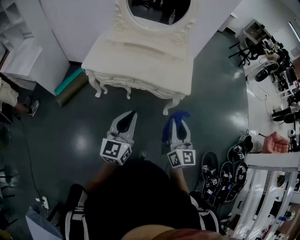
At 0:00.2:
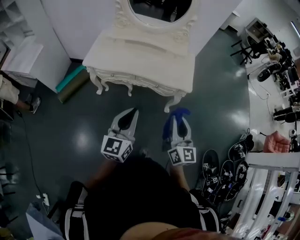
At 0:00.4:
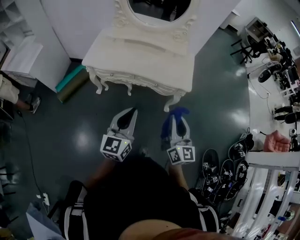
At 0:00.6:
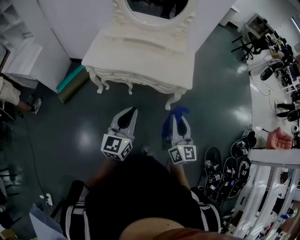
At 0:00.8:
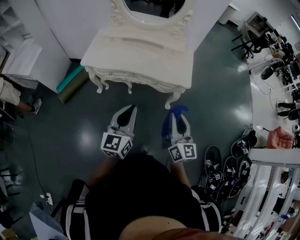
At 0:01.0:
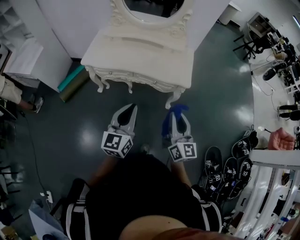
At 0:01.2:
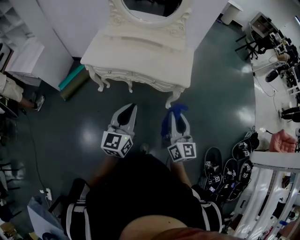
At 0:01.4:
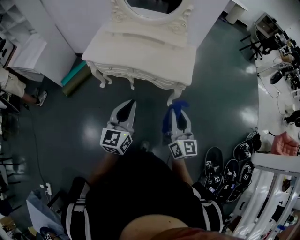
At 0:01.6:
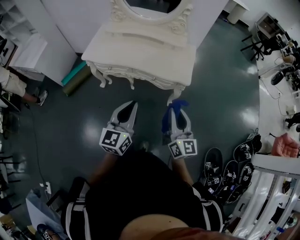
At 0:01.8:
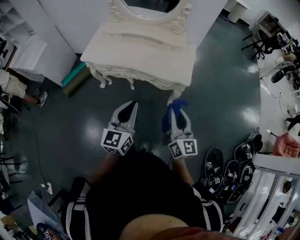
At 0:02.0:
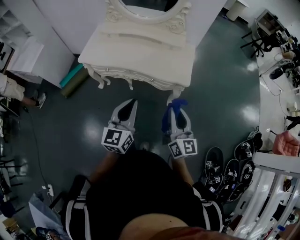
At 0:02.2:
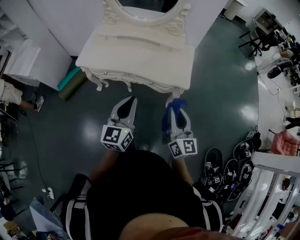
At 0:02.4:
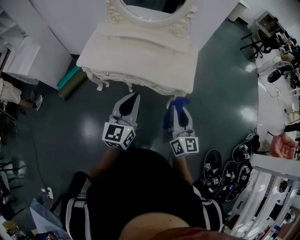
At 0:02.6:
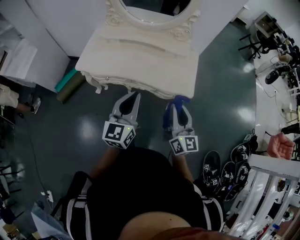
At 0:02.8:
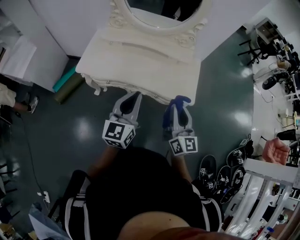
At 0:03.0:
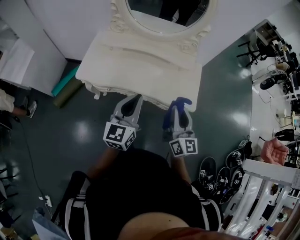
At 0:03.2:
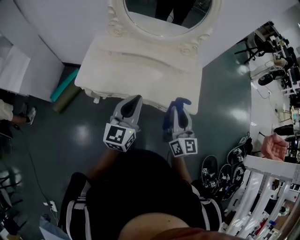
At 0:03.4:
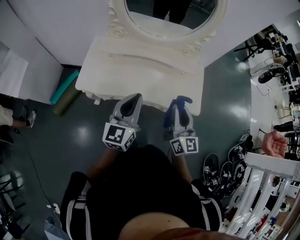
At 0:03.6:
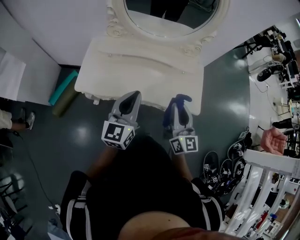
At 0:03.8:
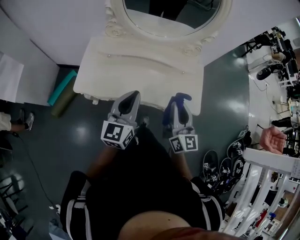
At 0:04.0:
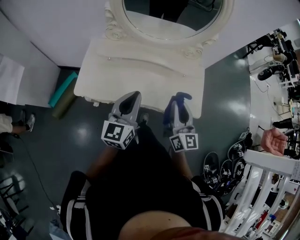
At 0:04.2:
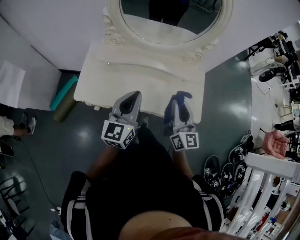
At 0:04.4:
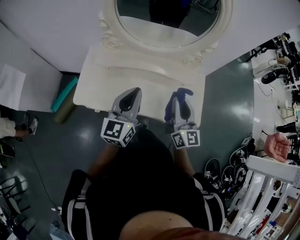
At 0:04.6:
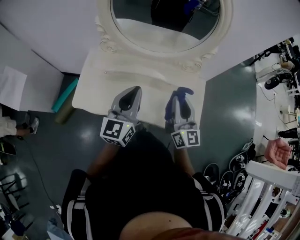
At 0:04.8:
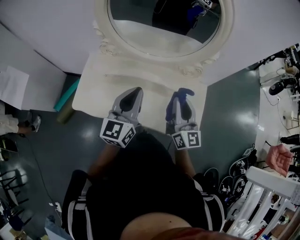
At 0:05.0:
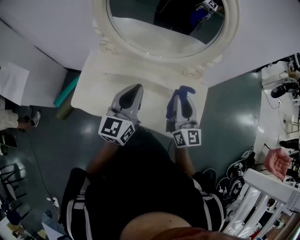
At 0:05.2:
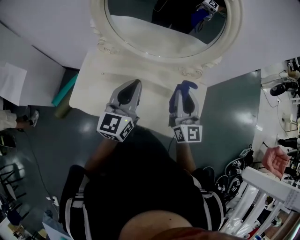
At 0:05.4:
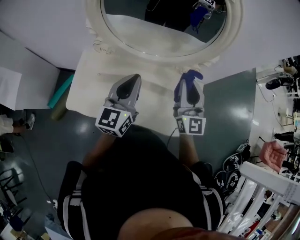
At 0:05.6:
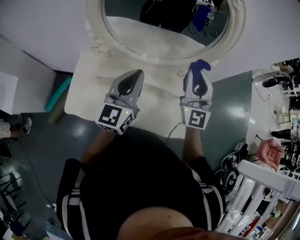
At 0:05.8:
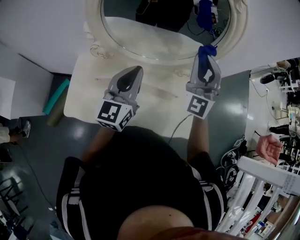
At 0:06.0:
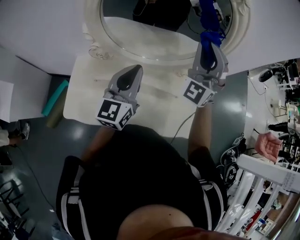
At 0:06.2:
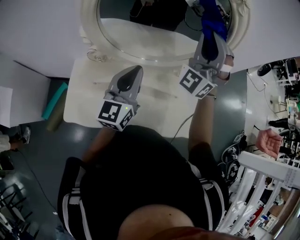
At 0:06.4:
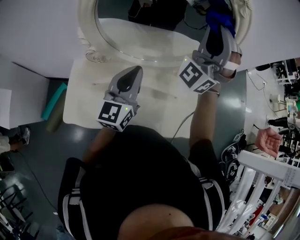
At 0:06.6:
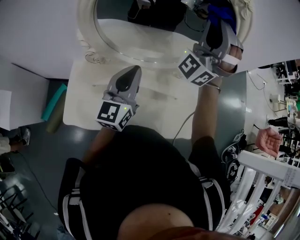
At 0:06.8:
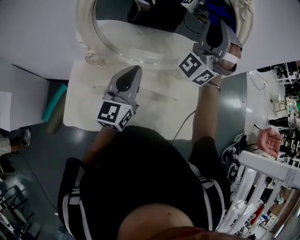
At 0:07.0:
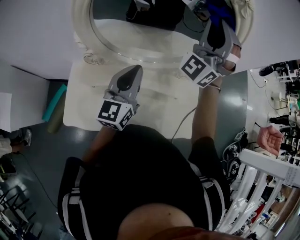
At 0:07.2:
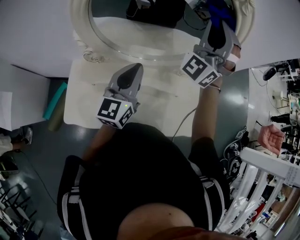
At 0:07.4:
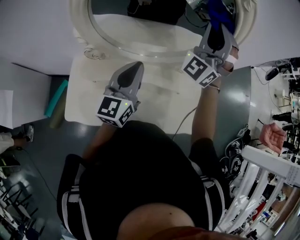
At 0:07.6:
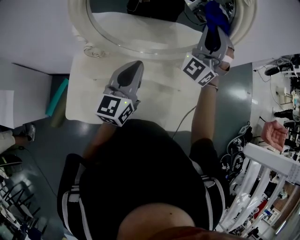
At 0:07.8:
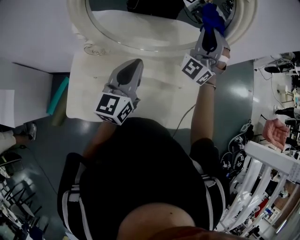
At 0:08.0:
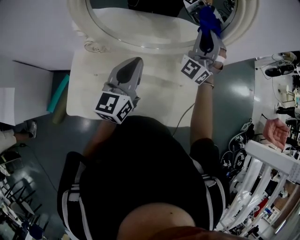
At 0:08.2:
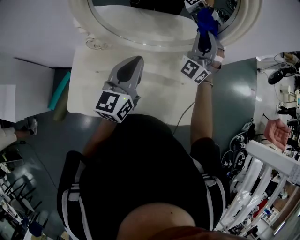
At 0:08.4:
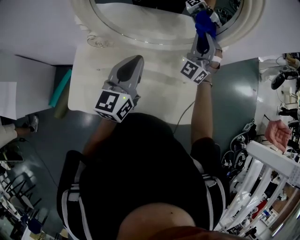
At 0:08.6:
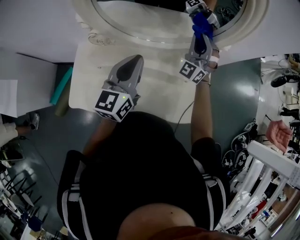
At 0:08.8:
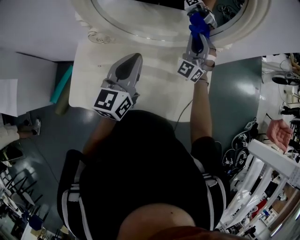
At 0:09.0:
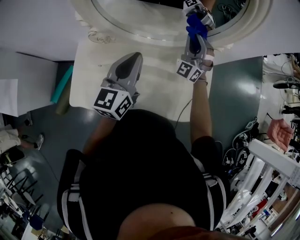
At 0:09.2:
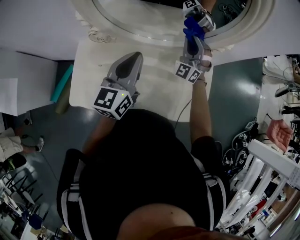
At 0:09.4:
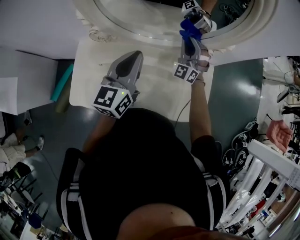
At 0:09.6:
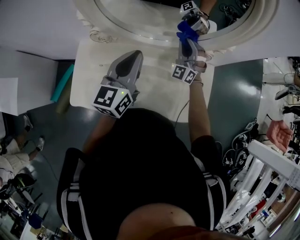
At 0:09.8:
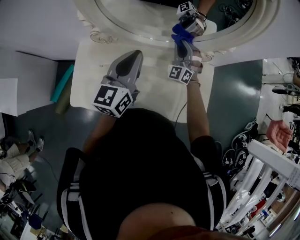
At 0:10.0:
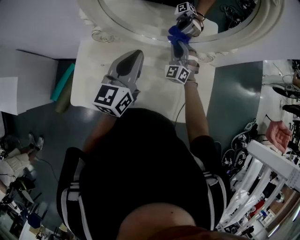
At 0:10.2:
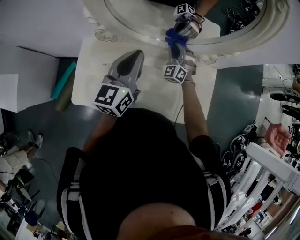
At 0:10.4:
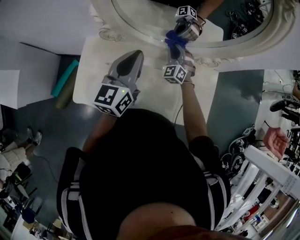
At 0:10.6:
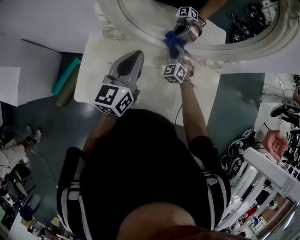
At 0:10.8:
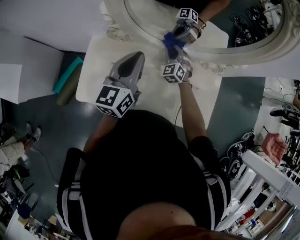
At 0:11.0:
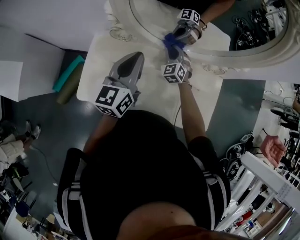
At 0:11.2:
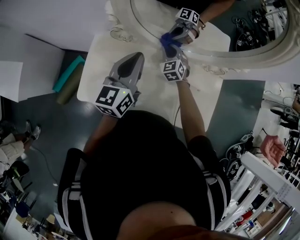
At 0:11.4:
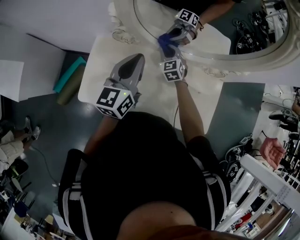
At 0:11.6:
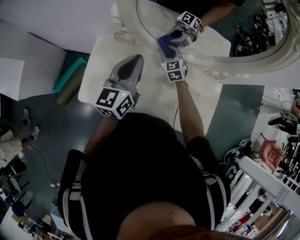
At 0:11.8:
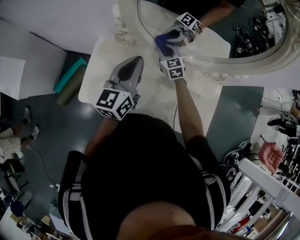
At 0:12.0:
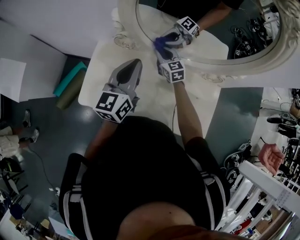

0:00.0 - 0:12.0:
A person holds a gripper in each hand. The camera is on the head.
0:00.0 - 0:01.6: Both grippers move to the right, some 10 cm.
0:01.6 - 0:03.0: Both grippers move forward and to the left, some 25 cm.
0:03.0 - 0:04.4: The grippers both shift forward by about 20 cm.
0:04.4 - 0:06.0: The right gripper heads forward and upward, covering some 30 cm, and rolls counterclockwise, seen from behind, by some 70 degrees, while the left gripper travels forward by roughly 20 cm.
0:06.0 - 0:07.6: The right gripper heads forward, covering approximately 5 cm, and reaches some 10 cm upward, then returns.
0:07.6 - 0:09.0: The right gripper is displaced downward by approximately 20 cm.
0:09.0 - 0:10.4: The right gripper heads downward and to the left, covering approximately 20 cm, and changes its angle by about 30 degrees; the left gripper travels to the left by some 5 cm.
0:10.4 - 0:12.0: The left gripper travels to the left by some 5 cm; the right gripper shifts roughly 15 cm to the left, and swivels roughly 50 degrees.

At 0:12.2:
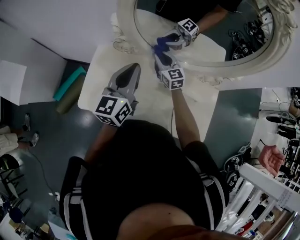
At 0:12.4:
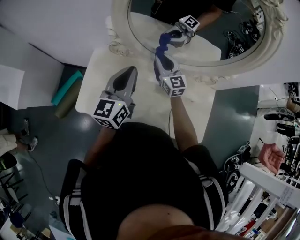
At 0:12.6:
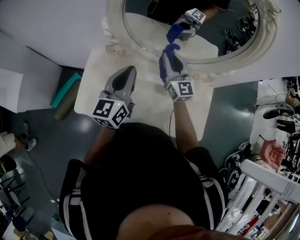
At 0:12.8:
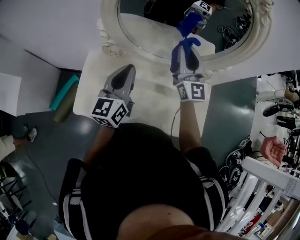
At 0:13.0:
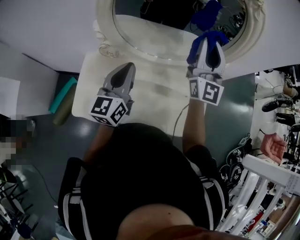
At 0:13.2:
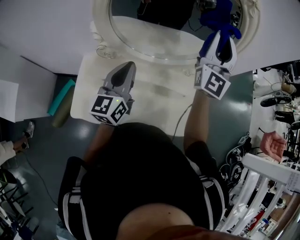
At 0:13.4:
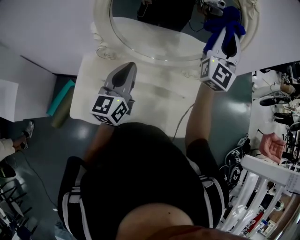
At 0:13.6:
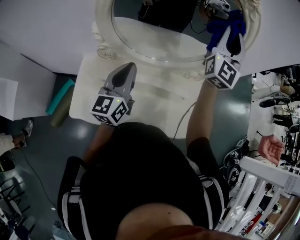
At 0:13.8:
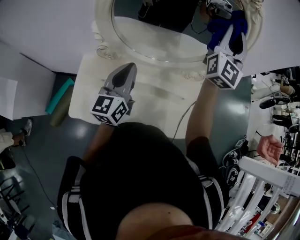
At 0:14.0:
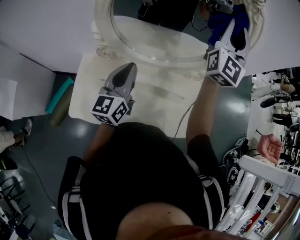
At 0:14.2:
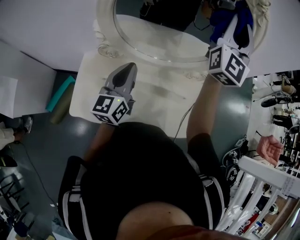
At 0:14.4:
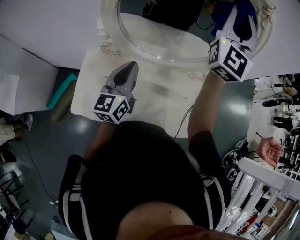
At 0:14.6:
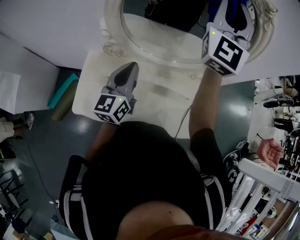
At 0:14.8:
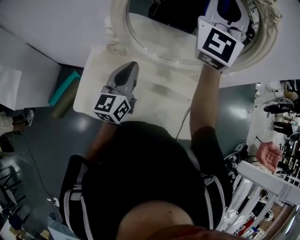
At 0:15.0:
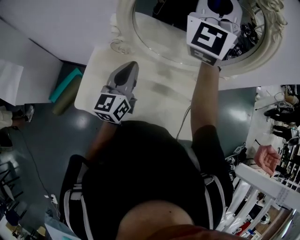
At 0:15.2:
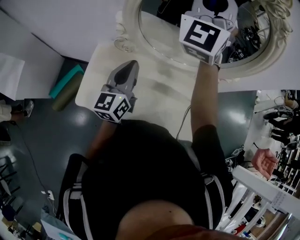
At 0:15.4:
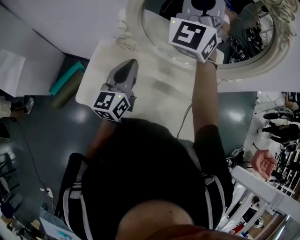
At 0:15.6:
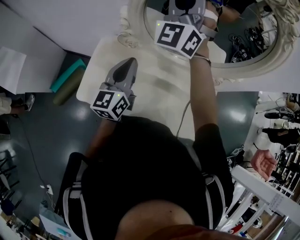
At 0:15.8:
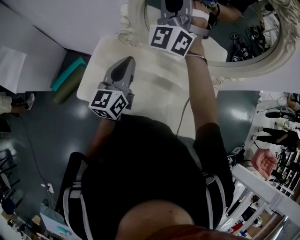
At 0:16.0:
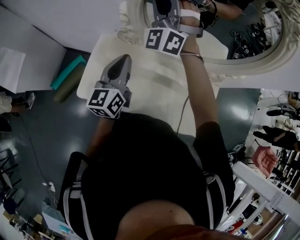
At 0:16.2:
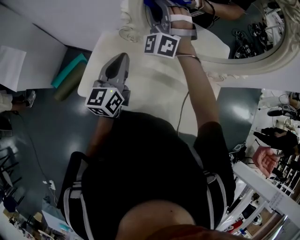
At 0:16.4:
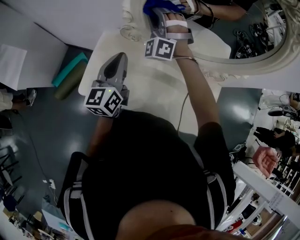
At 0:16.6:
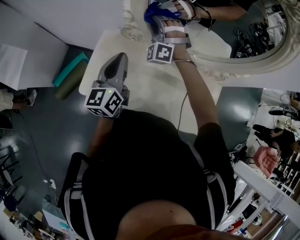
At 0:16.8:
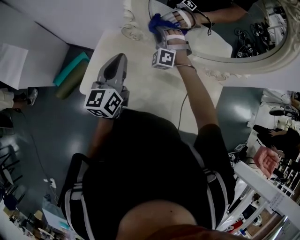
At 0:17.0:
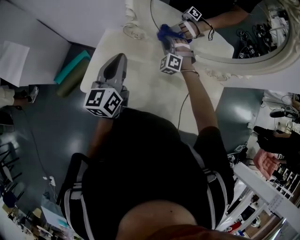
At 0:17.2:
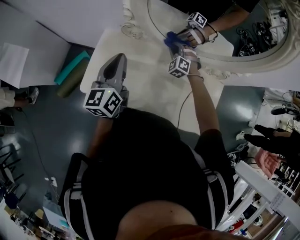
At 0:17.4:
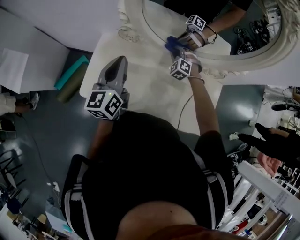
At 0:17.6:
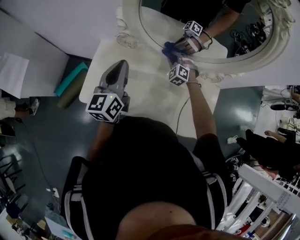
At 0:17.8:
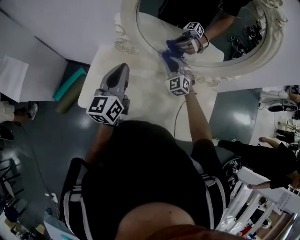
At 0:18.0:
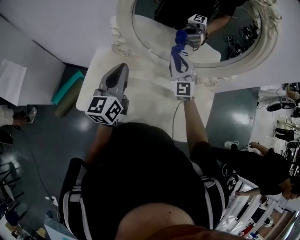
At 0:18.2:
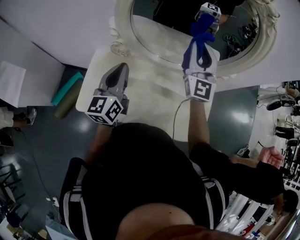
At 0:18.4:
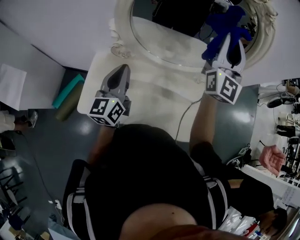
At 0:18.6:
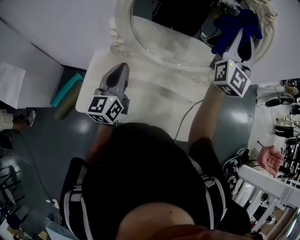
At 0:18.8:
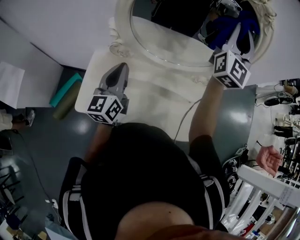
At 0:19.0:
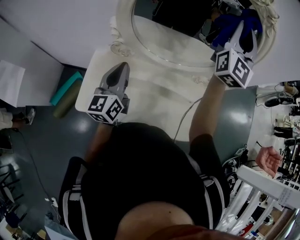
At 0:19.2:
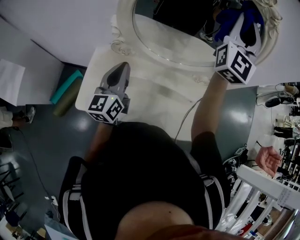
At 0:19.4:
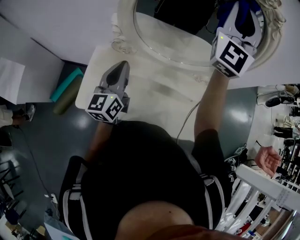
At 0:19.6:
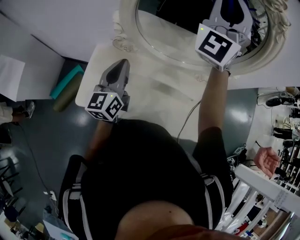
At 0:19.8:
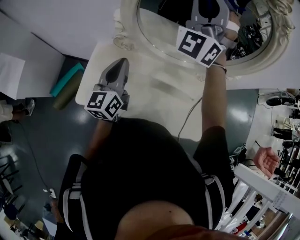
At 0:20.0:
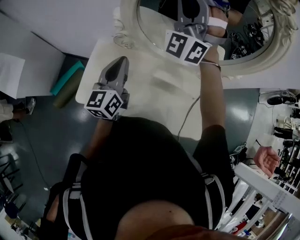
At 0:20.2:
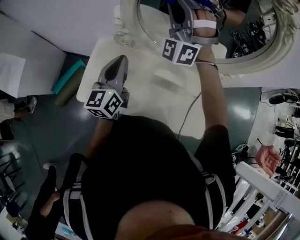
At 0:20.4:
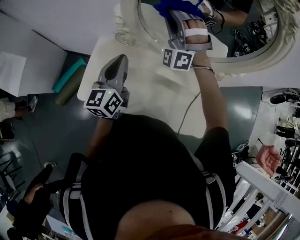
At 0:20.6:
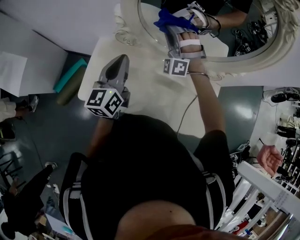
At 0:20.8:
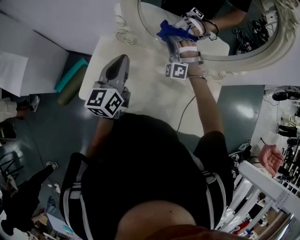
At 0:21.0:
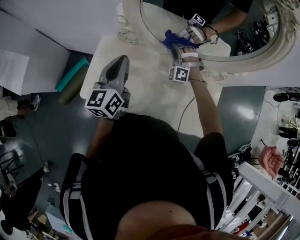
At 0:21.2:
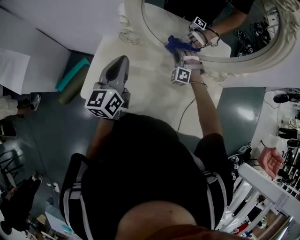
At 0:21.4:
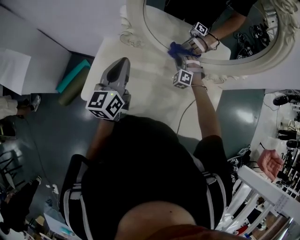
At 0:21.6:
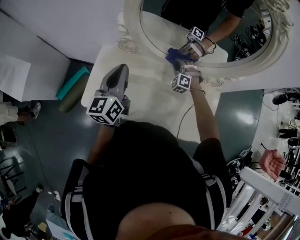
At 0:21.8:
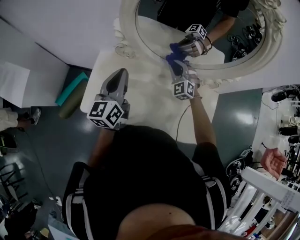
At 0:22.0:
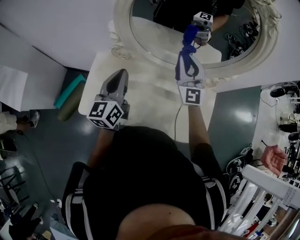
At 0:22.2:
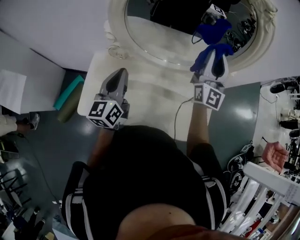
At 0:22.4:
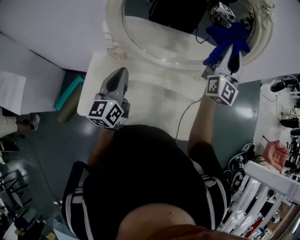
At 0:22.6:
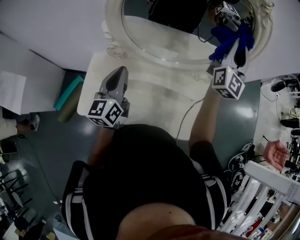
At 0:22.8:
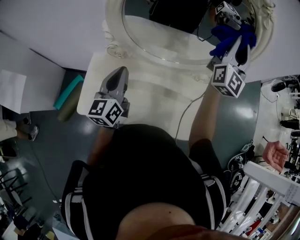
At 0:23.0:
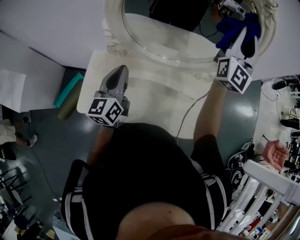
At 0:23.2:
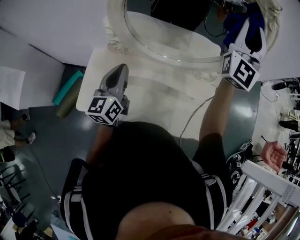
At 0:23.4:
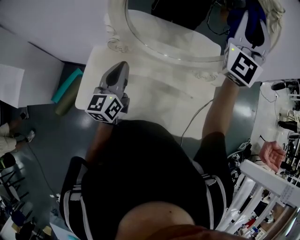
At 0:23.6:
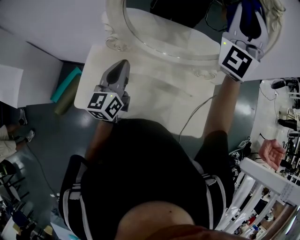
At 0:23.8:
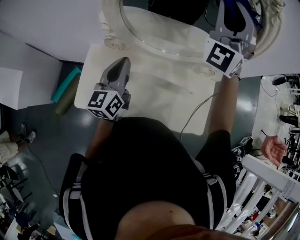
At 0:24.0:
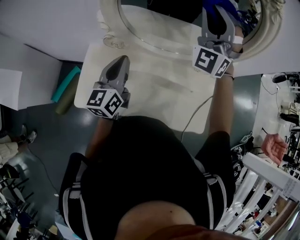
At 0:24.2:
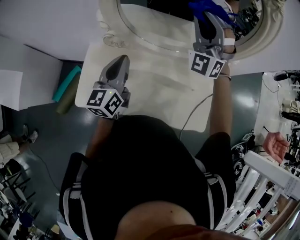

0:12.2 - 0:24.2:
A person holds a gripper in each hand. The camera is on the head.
0:12.2 - 0:13.8: The left gripper ends up roughly 5 cm from where it was. The right gripper goes some 50 cm upward and to the right, and tilts its fingers roughly 40 degrees upward.
0:13.8 - 0:15.2: The right gripper goes about 25 cm to the left, and rotates approximately 30 degrees; the left gripper moves to the left, approximately 5 cm.
0:15.2 - 0:16.6: The left gripper travels to the left by approximately 5 cm, while the right gripper travels downward by some 35 cm, and tilts its fingers some 30 degrees downward.
0:16.6 - 0:18.2: The left gripper ends up some 5 cm from where it was. The right gripper travels to the right, upward and backward by approximately 30 cm, and twists some 60 degrees clockwise, seen from behind.
0:18.2 - 0:19.8: The right gripper travels upward and to the left by approximately 20 cm, and twists roughly 50 degrees counterclockwise, seen from behind.
0:19.8 - 0:21.2: The right gripper travels downward by about 50 cm, and tilts its fingers approximately 50 degrees downward.
0:21.2 - 0:22.6: The right gripper travels upward and to the right by some 40 cm, and tips its fingers upward by roughly 50 degrees.
0:22.6 - 0:24.2: The right gripper shifts roughly 15 cm to the left, and rotates around the line of its fingers by approximately 60 degrees, counterclockwise from behind.
